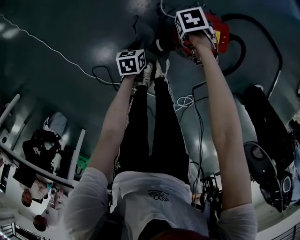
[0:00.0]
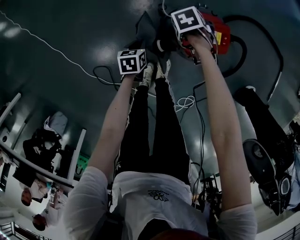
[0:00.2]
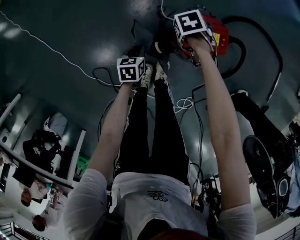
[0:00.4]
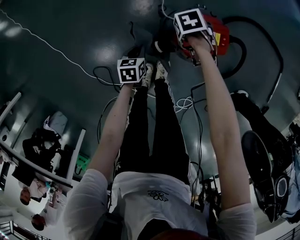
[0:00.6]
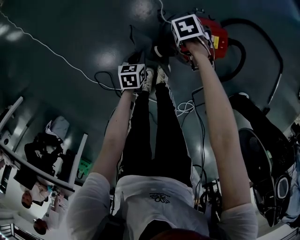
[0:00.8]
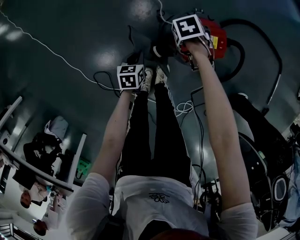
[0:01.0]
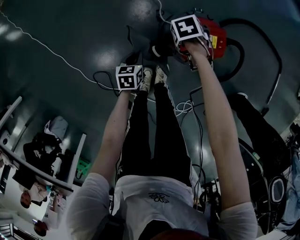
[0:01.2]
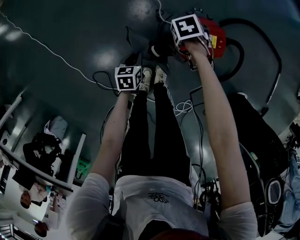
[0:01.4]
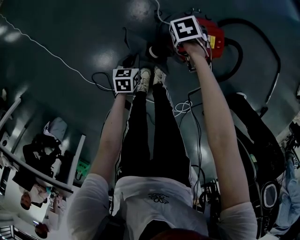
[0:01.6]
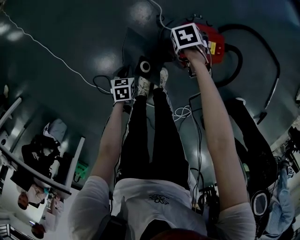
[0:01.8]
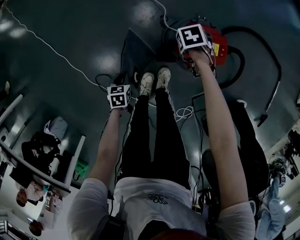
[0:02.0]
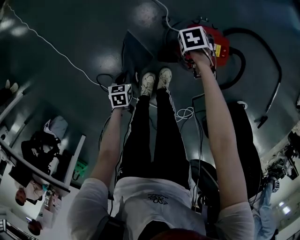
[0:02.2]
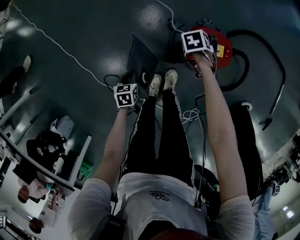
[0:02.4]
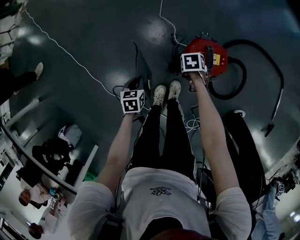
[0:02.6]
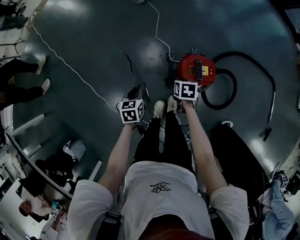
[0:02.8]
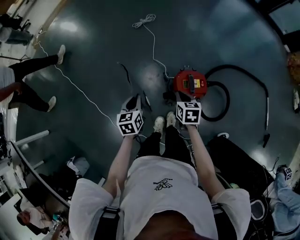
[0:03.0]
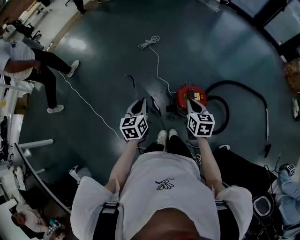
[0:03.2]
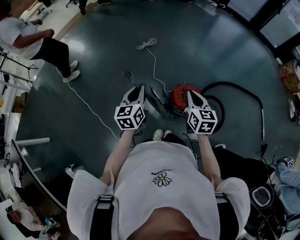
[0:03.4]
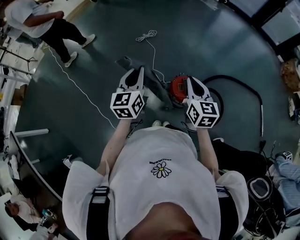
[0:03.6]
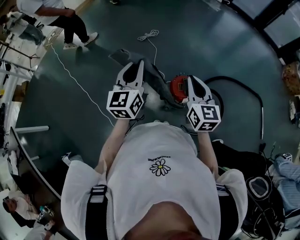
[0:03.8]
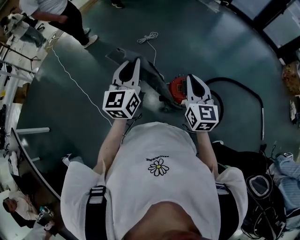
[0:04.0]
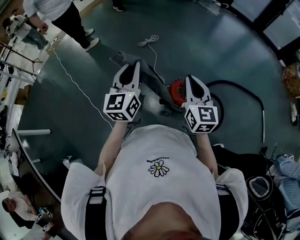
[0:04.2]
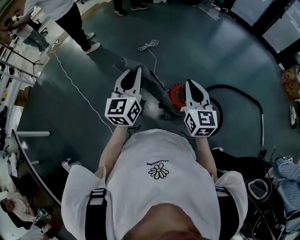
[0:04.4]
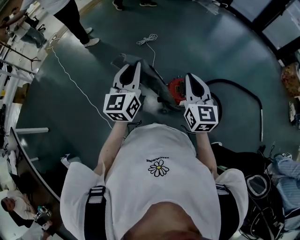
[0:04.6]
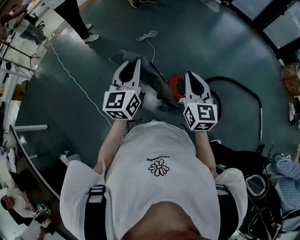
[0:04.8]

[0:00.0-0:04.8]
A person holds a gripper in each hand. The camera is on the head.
0.0 to 1.6 s: There are only small adjustments of the grippers.
1.6 to 3.2 s: The two grippers go approximately 50 cm upward. The left gripper swivels about 30 degrees; the right gripper tilts its fingers roughly 50 degrees upward.
3.2 to 4.8 s: Both grippers move upward, about 20 cm. The right gripper swivels approximately 30 degrees; the left gripper changes its angle by roughly 30 degrees.

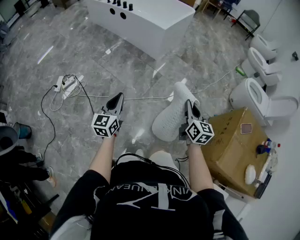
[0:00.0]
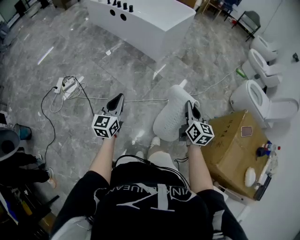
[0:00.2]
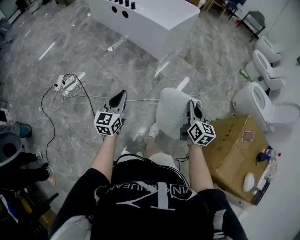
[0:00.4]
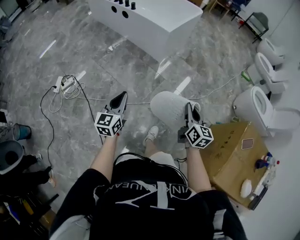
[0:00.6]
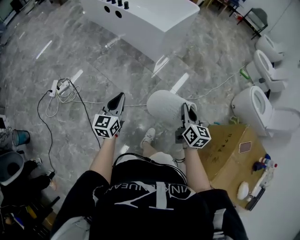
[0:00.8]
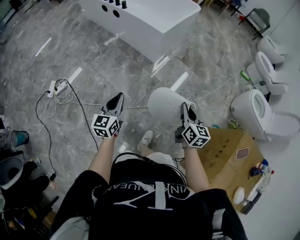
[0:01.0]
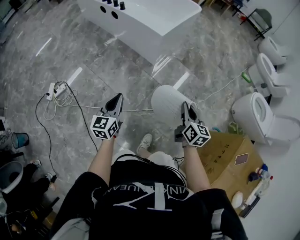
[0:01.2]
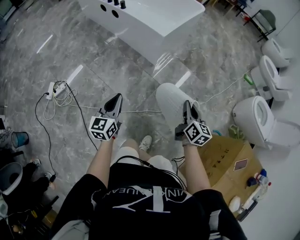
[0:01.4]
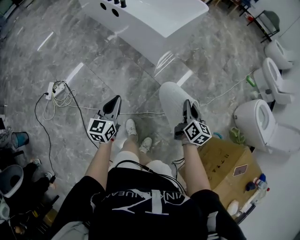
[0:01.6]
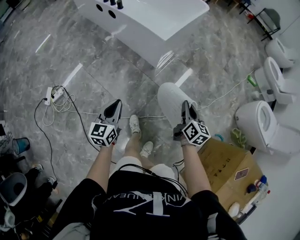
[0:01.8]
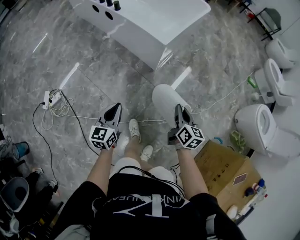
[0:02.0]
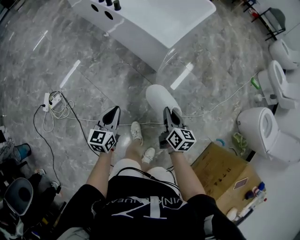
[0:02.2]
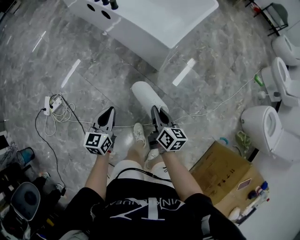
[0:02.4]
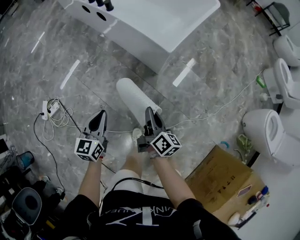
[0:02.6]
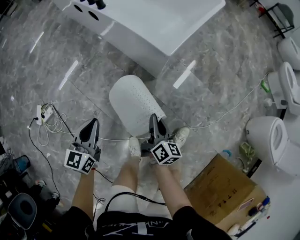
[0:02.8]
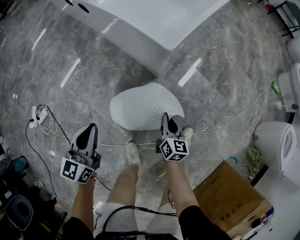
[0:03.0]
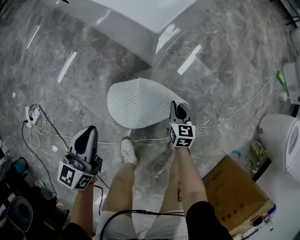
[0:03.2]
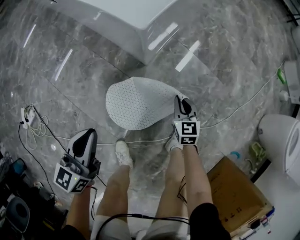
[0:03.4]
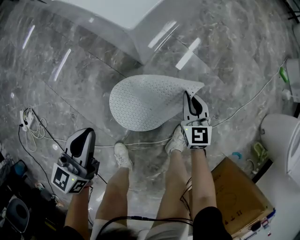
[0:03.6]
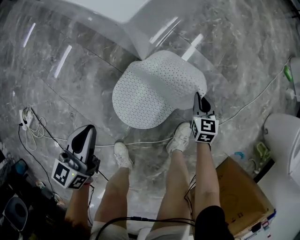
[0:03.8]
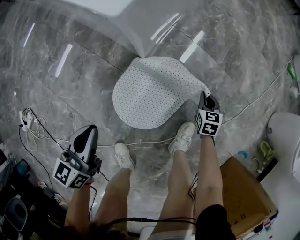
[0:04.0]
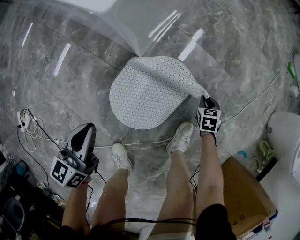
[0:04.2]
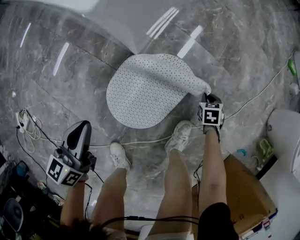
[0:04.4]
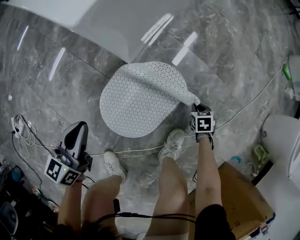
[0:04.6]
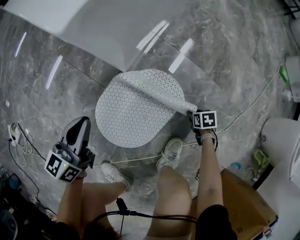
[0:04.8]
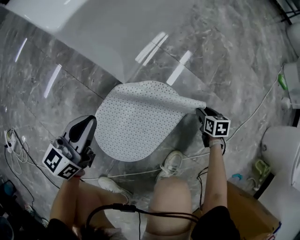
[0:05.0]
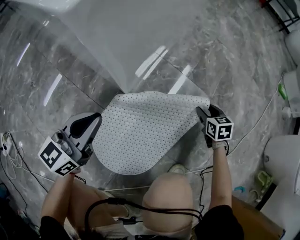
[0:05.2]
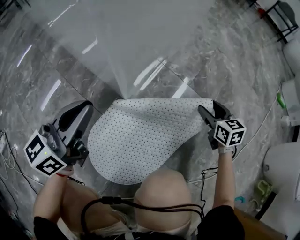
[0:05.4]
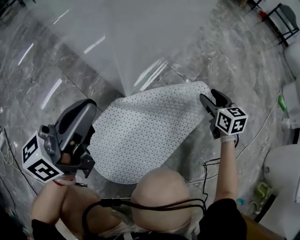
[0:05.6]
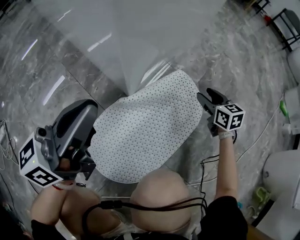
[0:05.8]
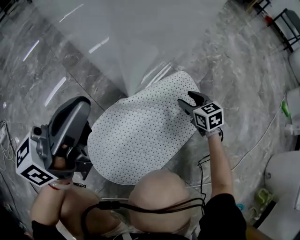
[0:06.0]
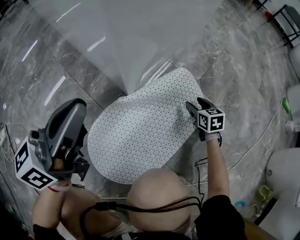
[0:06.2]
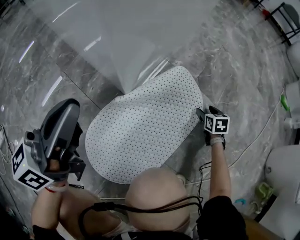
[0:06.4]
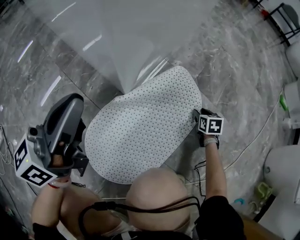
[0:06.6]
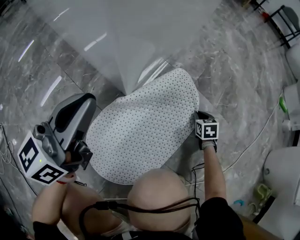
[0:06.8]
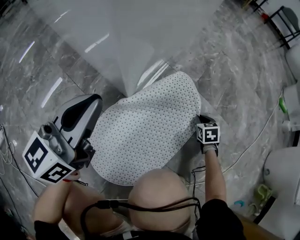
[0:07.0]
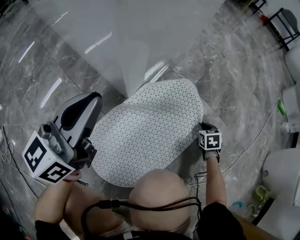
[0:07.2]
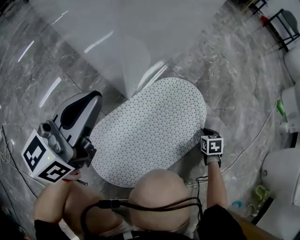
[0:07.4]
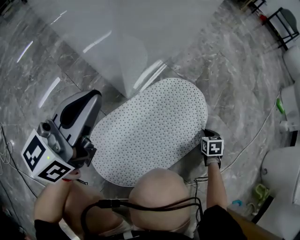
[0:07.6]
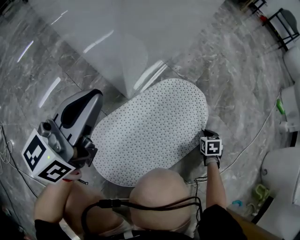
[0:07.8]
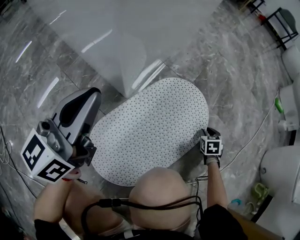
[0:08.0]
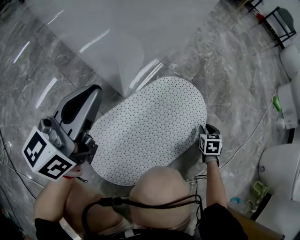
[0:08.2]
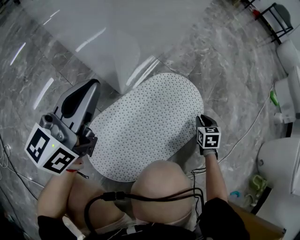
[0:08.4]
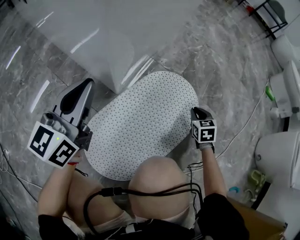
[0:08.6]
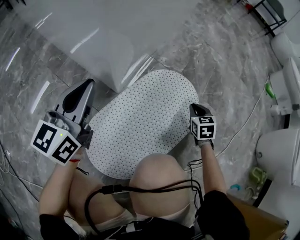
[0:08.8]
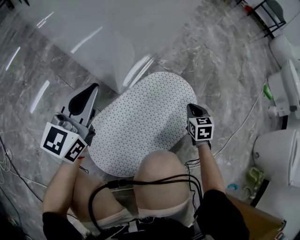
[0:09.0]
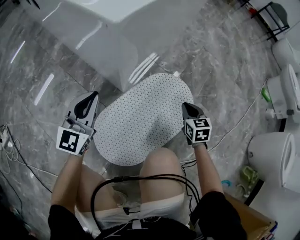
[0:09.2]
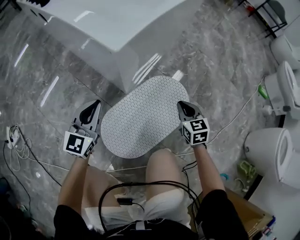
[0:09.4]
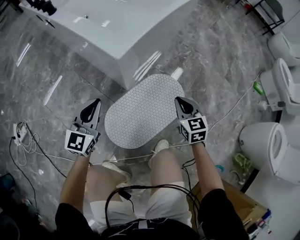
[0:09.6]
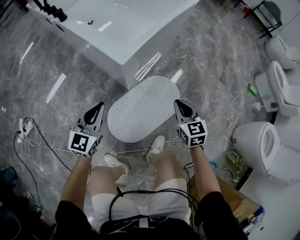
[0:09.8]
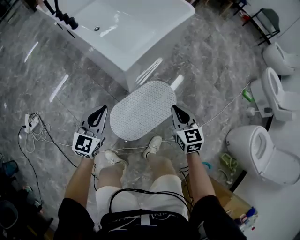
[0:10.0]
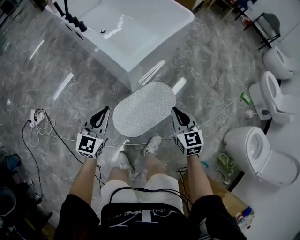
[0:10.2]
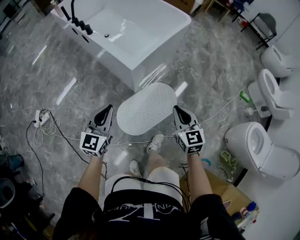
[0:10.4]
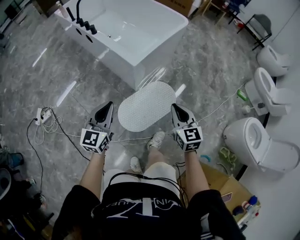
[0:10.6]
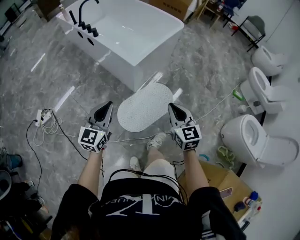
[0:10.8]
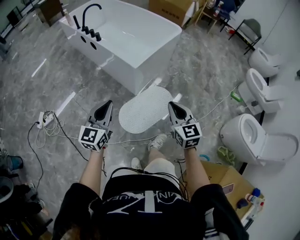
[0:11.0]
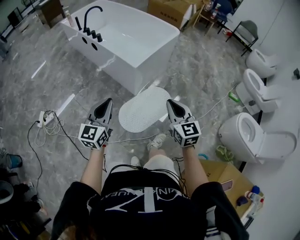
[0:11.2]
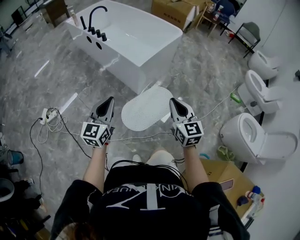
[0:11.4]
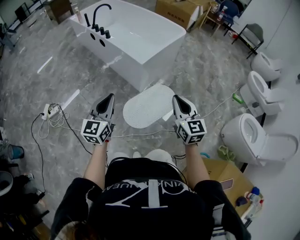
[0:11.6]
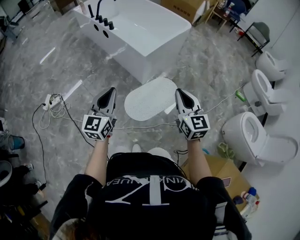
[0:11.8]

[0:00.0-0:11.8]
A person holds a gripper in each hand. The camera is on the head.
0.0 to 1.4 s: The grippers both shift forward by some 30 cm.
1.4 to 3.0 s: The right gripper moves downward and forward, about 50 cm. Meanwhile the left gripper heads forward and downward, covering some 35 cm.
3.0 to 4.4 s: The right gripper goes up and down, roughly 30 cm each way, reversing 2 times, and angles its fingers downward, by approximately 40 degrees, while the left gripper travels downward, to the right and forward by approximately 25 cm.
4.4 to 6.0 s: The left gripper reaches about 10 cm downward, then returns, and tilts its fingers some 30 degrees upward. Meanwhile the right gripper swings up and down, approximately 10 cm each way, with 2 reversals, rotates some 40 degrees, and opens up.
6.0 to 7.4 s: The right gripper travels to the right, backward and downward by approximately 20 cm, turns by some 40 degrees, and closes.
7.4 to 8.8 s: The right gripper travels upward and to the left by some 10 cm.
8.8 to 10.4 s: The left gripper shifts some 50 cm upward and backward. Meanwhile the right gripper moves upward, approximately 70 cm, and changes its angle by some 30 degrees.
10.4 to 11.8 s: The left gripper travels backward and upward by approximately 25 cm, while the right gripper is displaced upward and backward by roughly 25 cm.

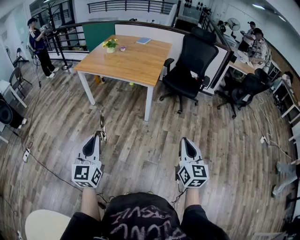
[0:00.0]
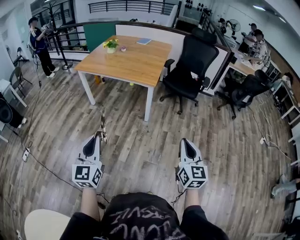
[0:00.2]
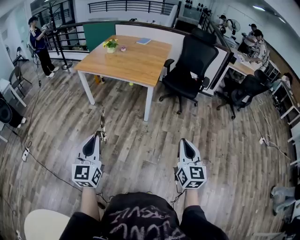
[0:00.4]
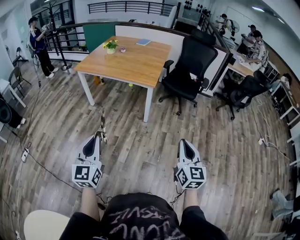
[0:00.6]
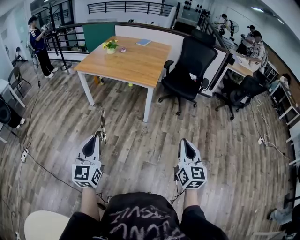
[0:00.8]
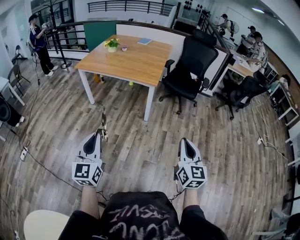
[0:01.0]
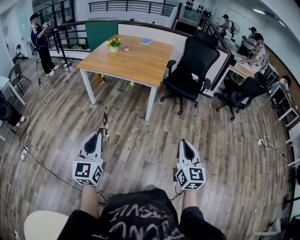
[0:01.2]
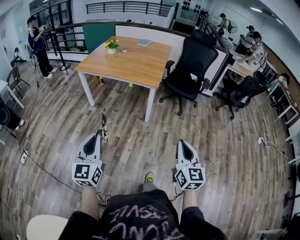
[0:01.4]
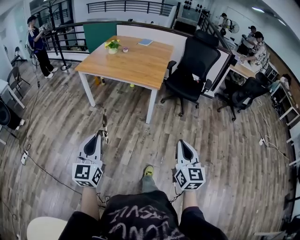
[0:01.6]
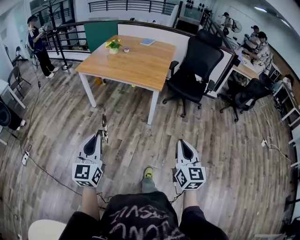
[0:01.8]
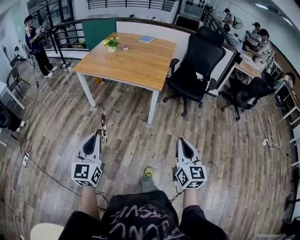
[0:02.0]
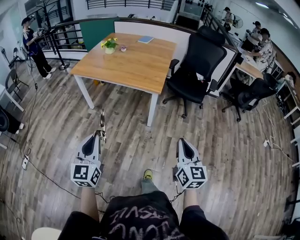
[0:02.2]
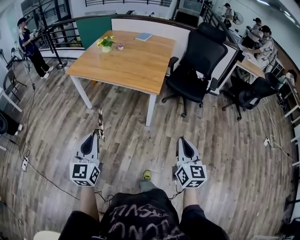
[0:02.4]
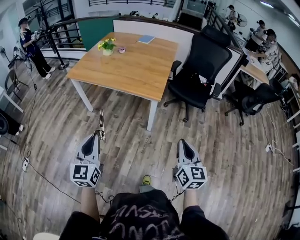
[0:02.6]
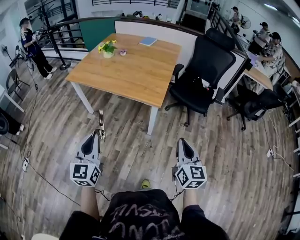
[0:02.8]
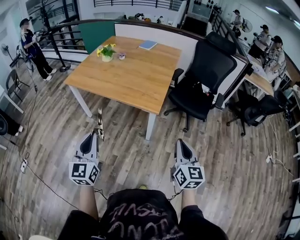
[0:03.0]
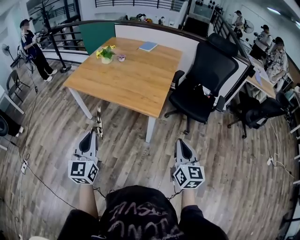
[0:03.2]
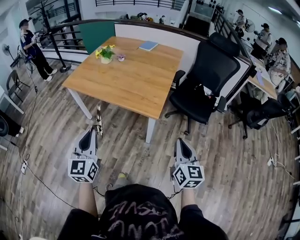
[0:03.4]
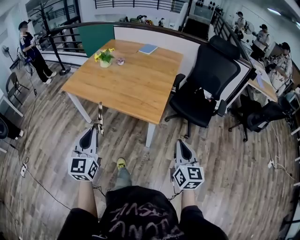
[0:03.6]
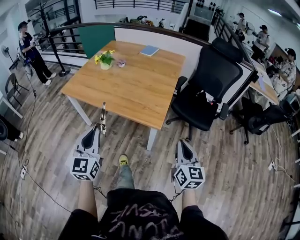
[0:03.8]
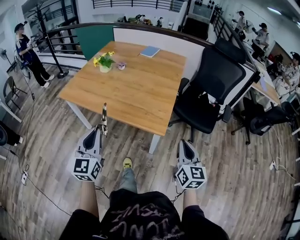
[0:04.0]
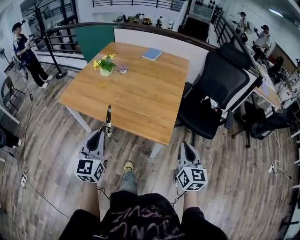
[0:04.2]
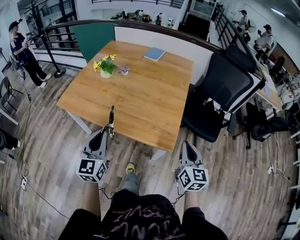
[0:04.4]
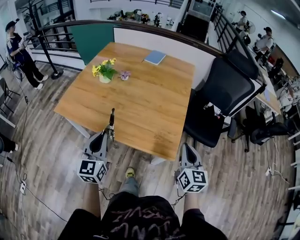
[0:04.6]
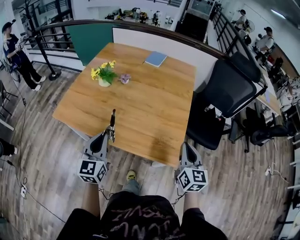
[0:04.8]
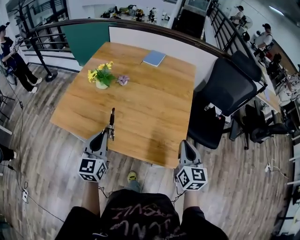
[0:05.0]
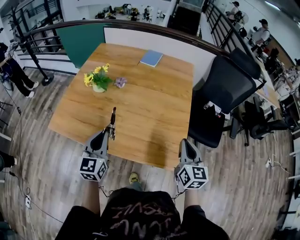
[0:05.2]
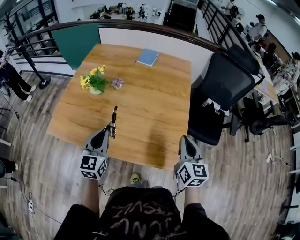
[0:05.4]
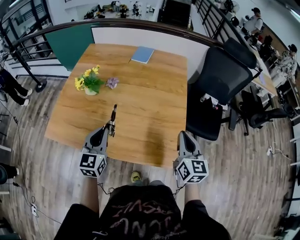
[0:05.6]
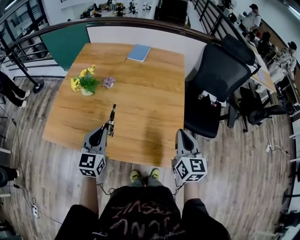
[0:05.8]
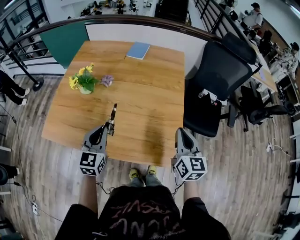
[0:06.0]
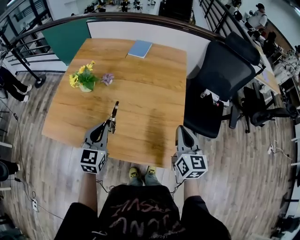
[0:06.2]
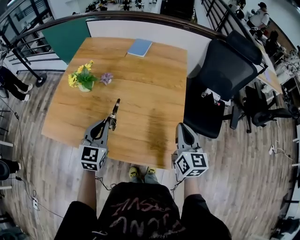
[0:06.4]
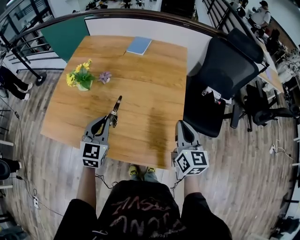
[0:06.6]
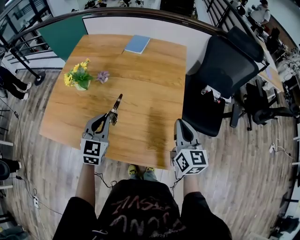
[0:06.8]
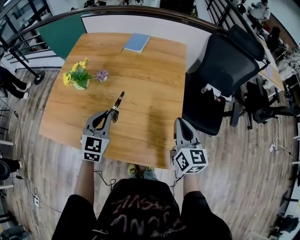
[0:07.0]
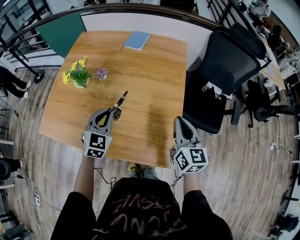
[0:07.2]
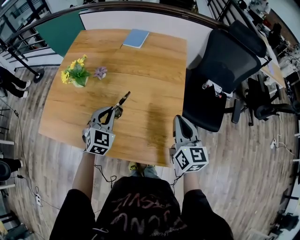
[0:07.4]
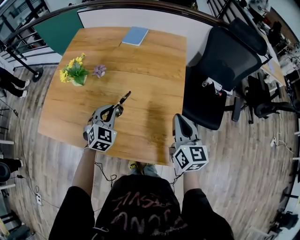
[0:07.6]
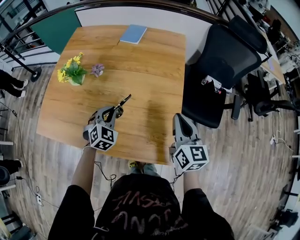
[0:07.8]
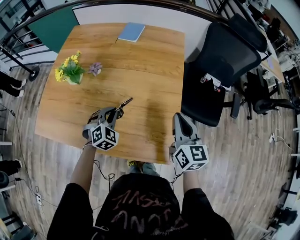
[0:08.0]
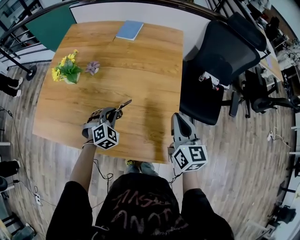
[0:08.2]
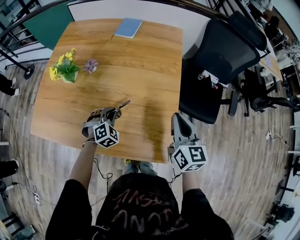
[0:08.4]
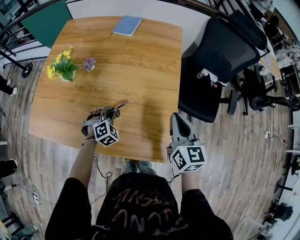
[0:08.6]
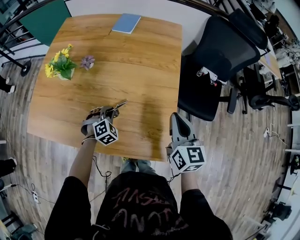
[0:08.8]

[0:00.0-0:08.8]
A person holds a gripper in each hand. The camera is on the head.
0.0 to 1.4 s: The right gripper moves to the left, about 5 cm.
1.4 to 3.0 s: The grippers both shift forward by roughly 35 cm.
3.0 to 4.4 s: The two grippers go roughly 30 cm forward.
4.4 to 5.8 s: The right gripper goes approximately 20 cm forward and to the left. The left gripper heads forward, covering approximately 25 cm.
5.8 to 7.4 s: The right gripper moves forward, roughly 5 cm, while the left gripper travels forward, to the right and downward by some 15 cm, and changes its angle by about 30 degrees.
7.4 to 8.8 s: The left gripper heads downward, covering roughly 15 cm, and swivels roughly 30 degrees.
